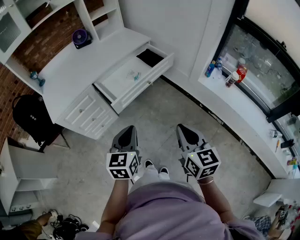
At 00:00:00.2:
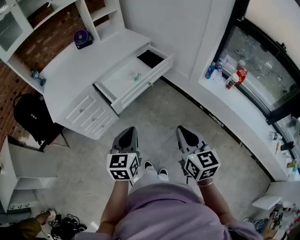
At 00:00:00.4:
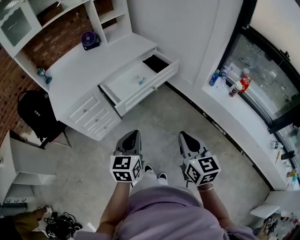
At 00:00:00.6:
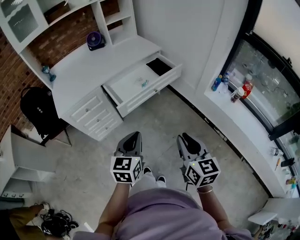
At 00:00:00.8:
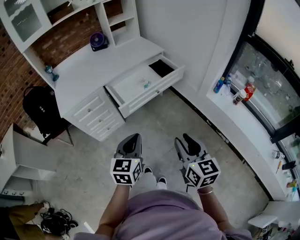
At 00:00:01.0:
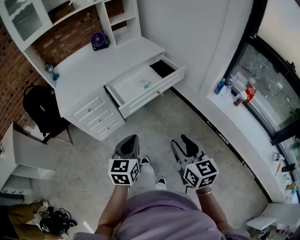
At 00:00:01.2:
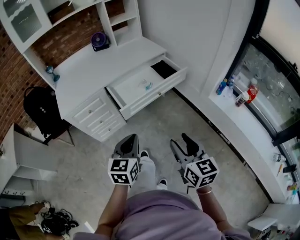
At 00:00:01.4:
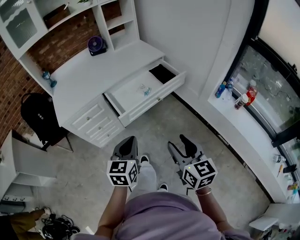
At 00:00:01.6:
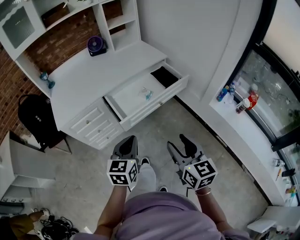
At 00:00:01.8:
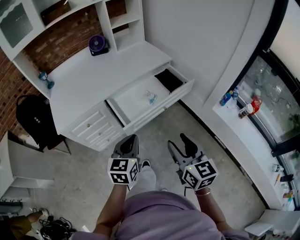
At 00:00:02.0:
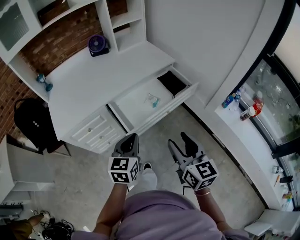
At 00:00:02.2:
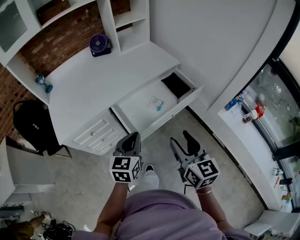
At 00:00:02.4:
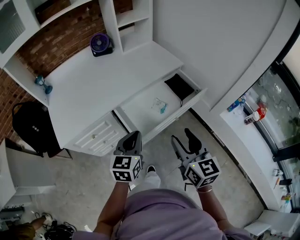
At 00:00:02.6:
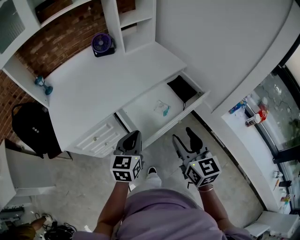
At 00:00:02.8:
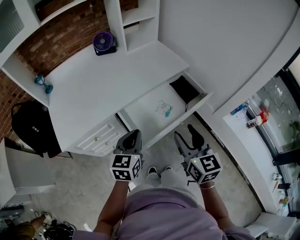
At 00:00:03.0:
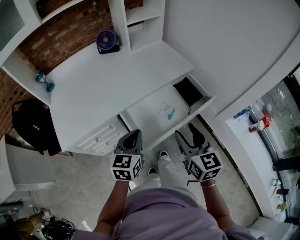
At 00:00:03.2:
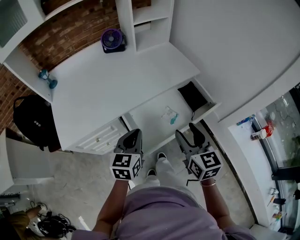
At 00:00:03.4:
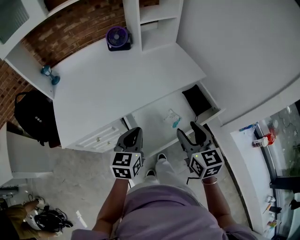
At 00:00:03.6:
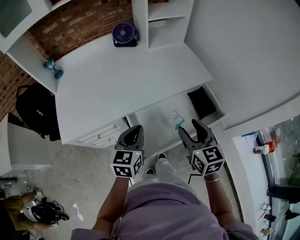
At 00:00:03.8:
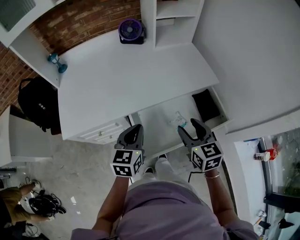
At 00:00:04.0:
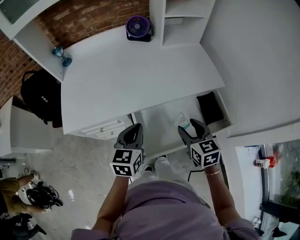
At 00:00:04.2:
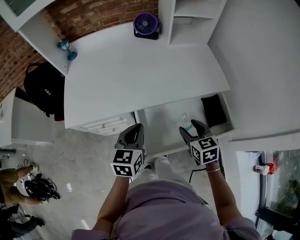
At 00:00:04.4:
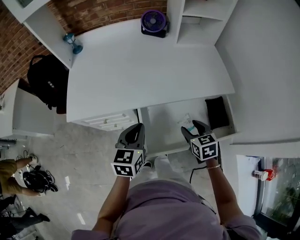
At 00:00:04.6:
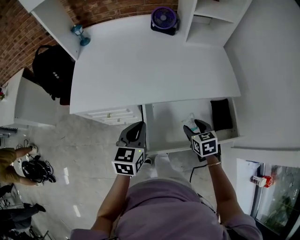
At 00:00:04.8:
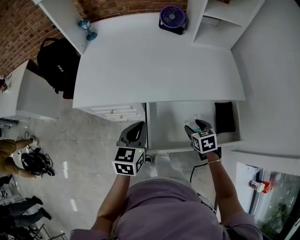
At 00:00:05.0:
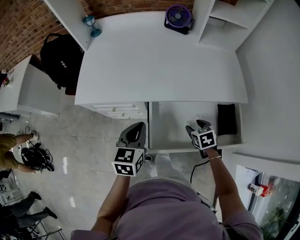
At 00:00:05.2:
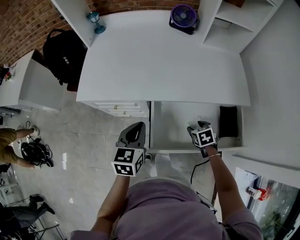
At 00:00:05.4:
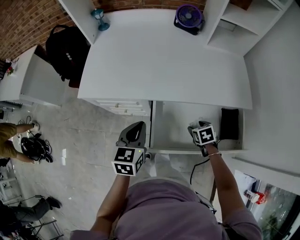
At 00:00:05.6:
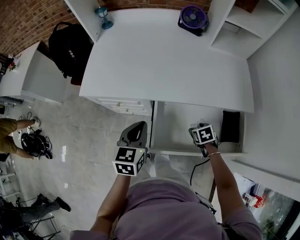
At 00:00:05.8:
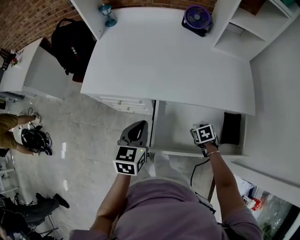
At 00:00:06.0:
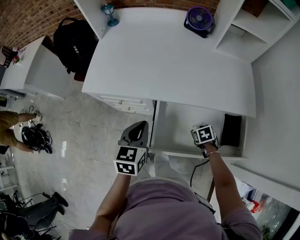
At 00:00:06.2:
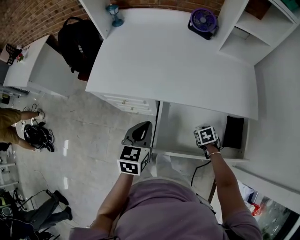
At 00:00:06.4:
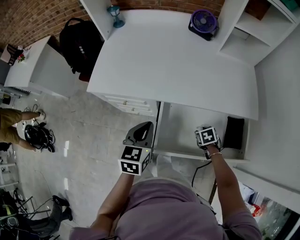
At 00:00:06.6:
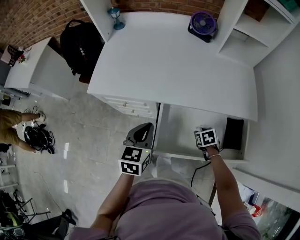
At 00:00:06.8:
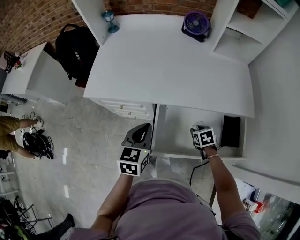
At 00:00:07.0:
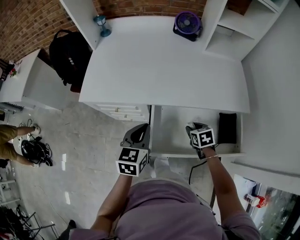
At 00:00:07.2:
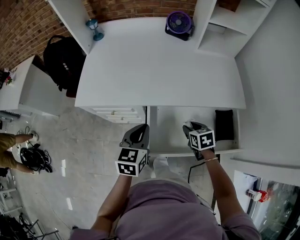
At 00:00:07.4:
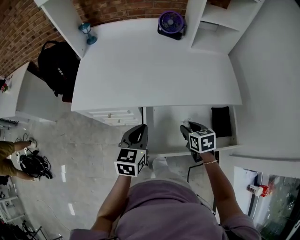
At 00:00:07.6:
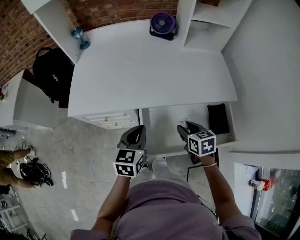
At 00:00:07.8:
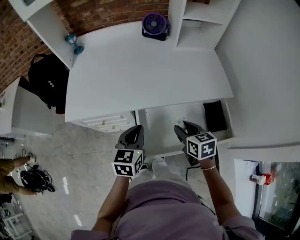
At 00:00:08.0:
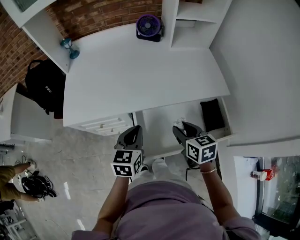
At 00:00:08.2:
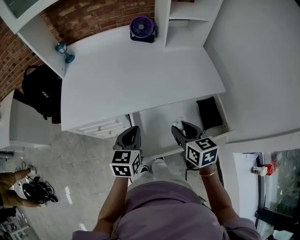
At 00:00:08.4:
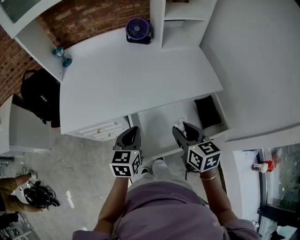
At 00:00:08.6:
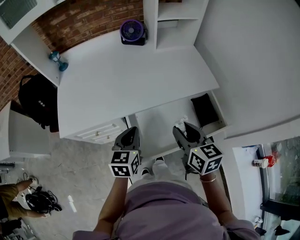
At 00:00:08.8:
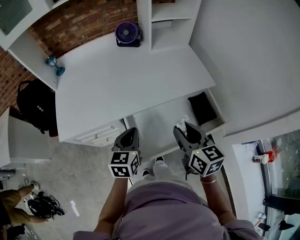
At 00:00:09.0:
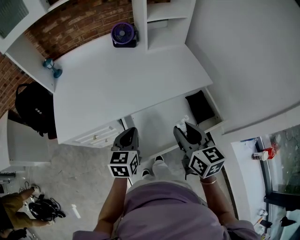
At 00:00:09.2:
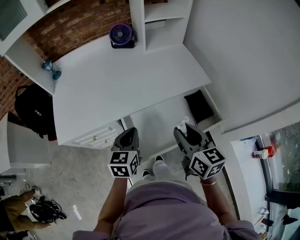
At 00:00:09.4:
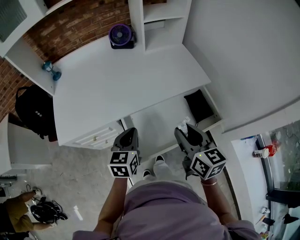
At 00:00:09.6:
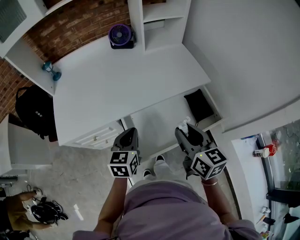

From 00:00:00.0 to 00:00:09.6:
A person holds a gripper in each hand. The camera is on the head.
From 00:00:00.0 to 00:00:01.6: Both grippers travel together forward, some 10 cm. The right gripper opens.
From 00:00:01.6 to 00:00:03.2: The left gripper heads forward and to the left, covering about 30 cm. Meanwhile the right gripper heads forward, covering some 30 cm.
From 00:00:03.2 to 00:00:04.8: The right gripper is displaced downward by approximately 20 cm, and tilts its fingers roughly 40 degrees downward. The left gripper moves approximately 5 cm, and turns by roughly 30 degrees.
From 00:00:04.8 to 00:00:06.4: The right gripper heads downward, covering some 10 cm, and turns by roughly 20 degrees.
From 00:00:06.4 to 00:00:08.0: The left gripper changes place by approximately 5 cm. Meanwhile the right gripper travels upward by approximately 20 cm, and points its fingers some 40 degrees further upward.
From 00:00:08.0 to 00:00:09.6: The right gripper shifts about 10 cm upward and backward, and turns by roughly 20 degrees.

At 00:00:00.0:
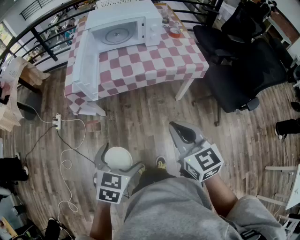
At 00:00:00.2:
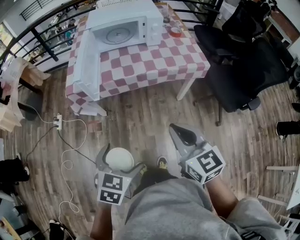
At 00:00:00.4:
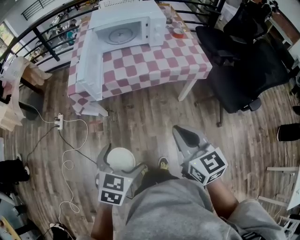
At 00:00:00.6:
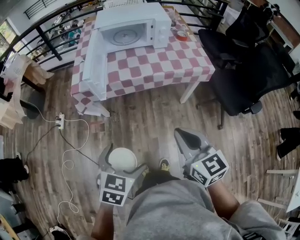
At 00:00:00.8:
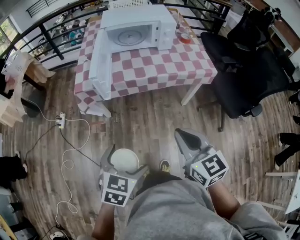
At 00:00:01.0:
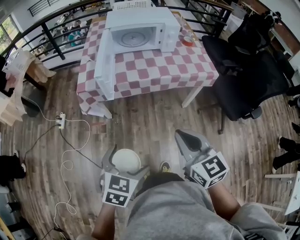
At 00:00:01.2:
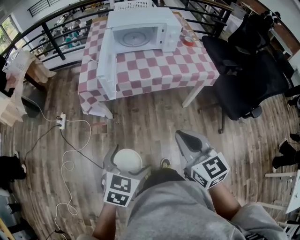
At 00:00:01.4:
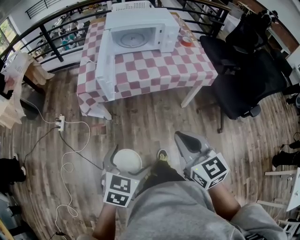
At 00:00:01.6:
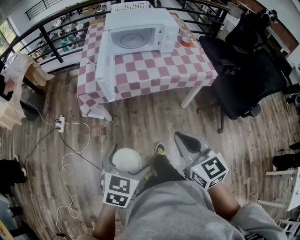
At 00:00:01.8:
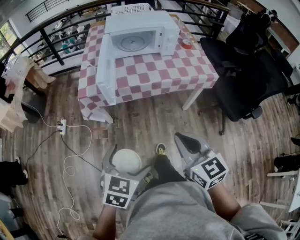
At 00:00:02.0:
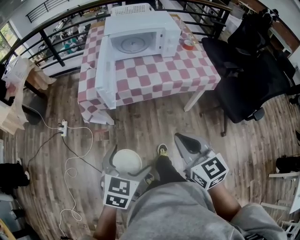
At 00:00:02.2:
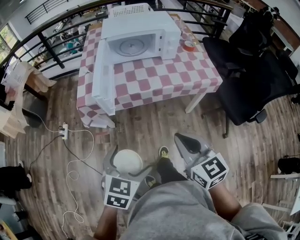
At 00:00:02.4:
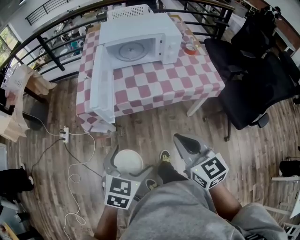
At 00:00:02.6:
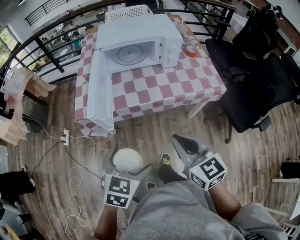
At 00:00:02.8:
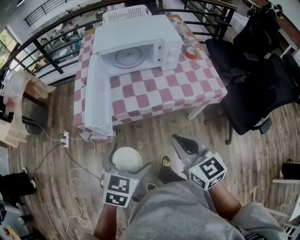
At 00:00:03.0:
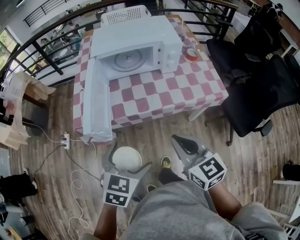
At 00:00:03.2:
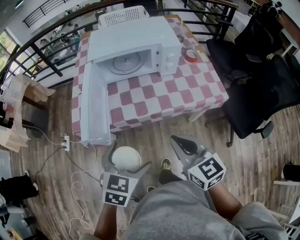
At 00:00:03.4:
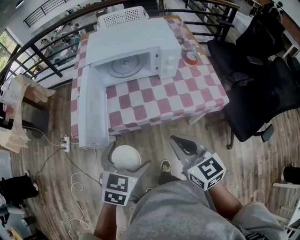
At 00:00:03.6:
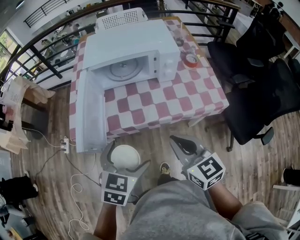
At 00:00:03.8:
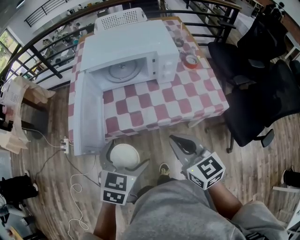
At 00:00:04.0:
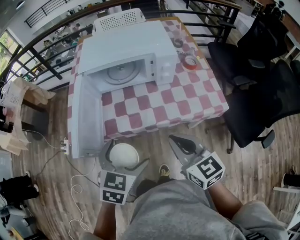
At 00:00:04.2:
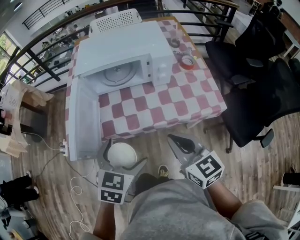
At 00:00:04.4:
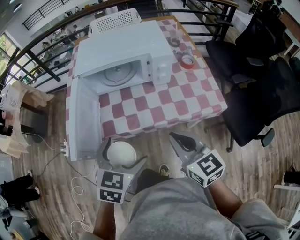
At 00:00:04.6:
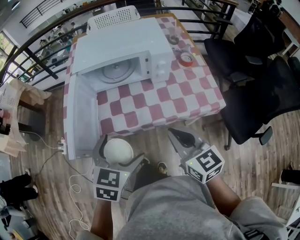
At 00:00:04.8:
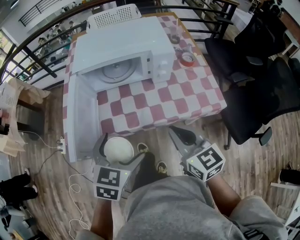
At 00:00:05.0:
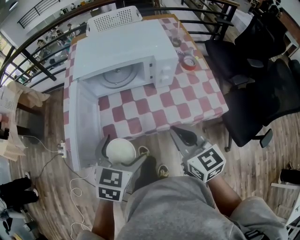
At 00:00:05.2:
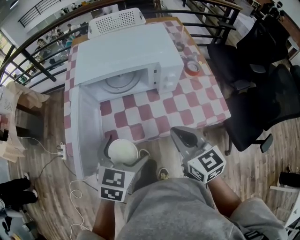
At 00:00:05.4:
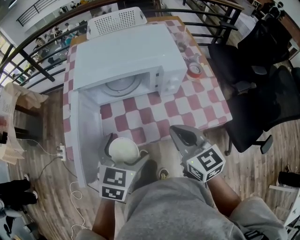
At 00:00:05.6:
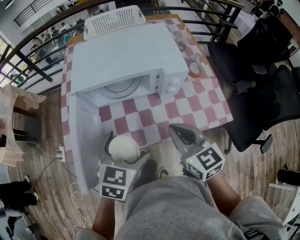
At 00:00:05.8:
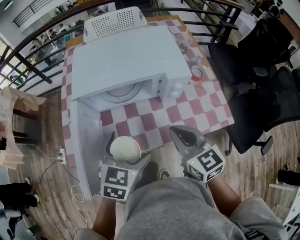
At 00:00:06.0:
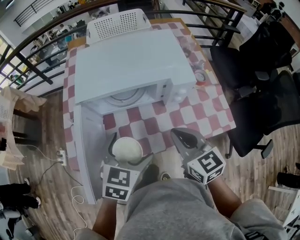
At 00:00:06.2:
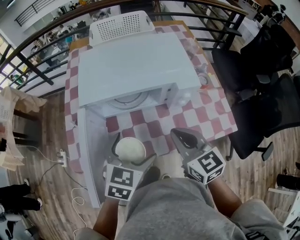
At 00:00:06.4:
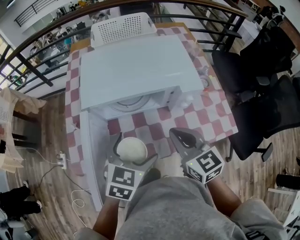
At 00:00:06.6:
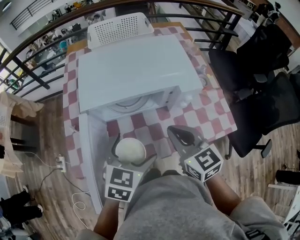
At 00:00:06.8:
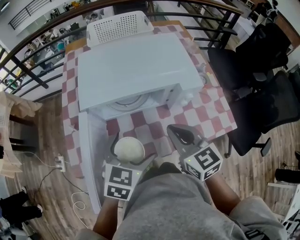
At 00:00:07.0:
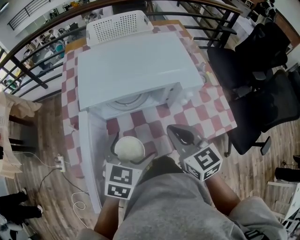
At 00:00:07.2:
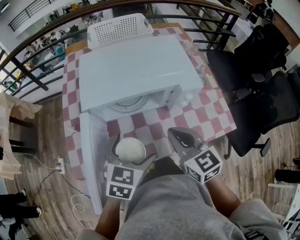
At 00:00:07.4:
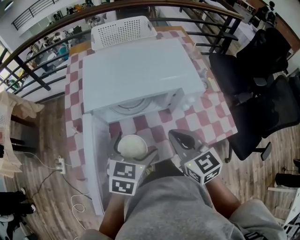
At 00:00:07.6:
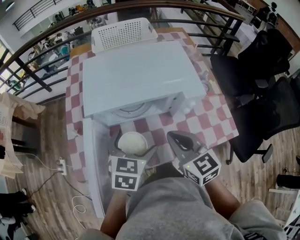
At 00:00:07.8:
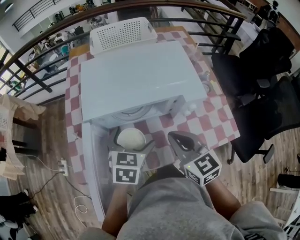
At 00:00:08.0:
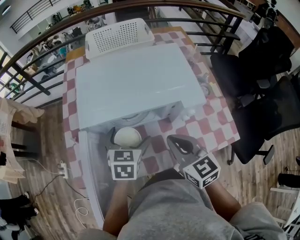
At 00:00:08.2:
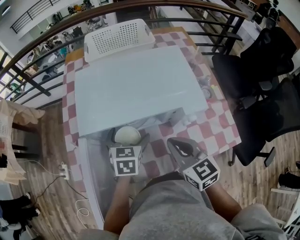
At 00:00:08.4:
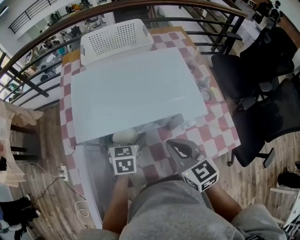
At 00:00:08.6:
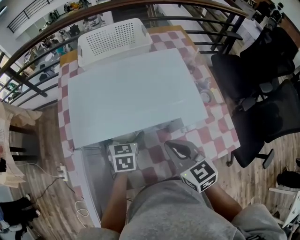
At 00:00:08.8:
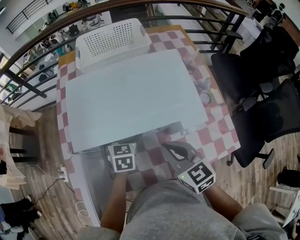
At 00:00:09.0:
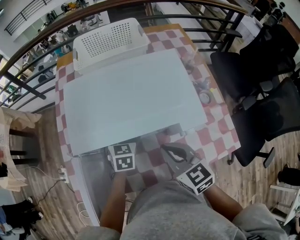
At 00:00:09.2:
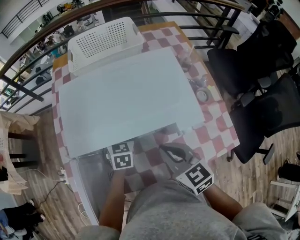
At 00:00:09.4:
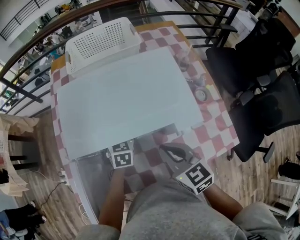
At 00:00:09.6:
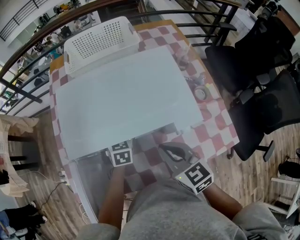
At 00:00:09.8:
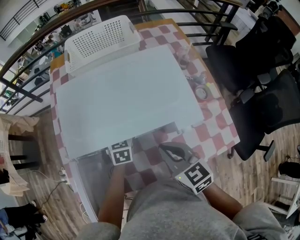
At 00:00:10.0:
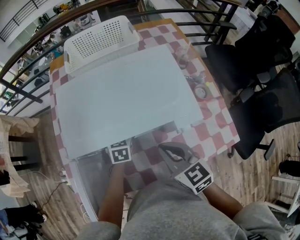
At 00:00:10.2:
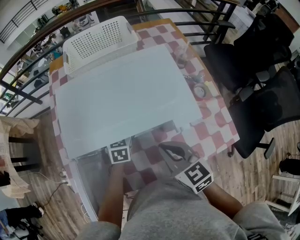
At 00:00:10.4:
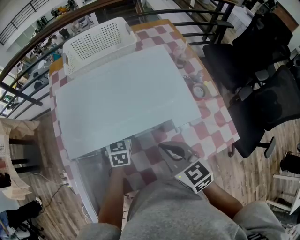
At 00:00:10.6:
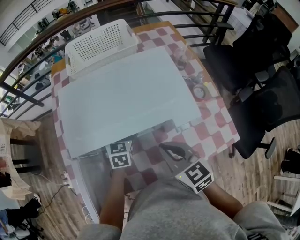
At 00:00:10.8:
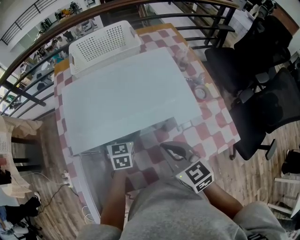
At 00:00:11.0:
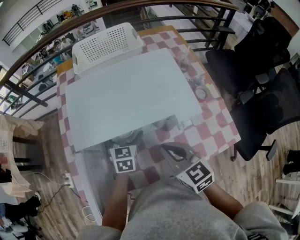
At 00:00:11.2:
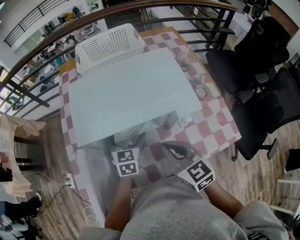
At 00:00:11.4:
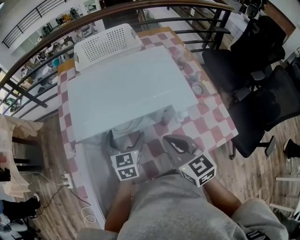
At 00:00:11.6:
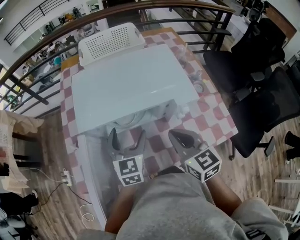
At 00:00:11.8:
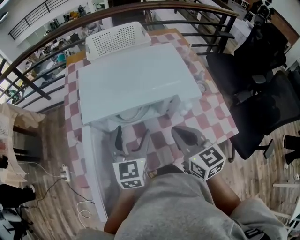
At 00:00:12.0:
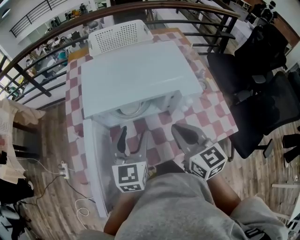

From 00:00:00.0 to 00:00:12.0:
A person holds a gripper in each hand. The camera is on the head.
From 00:00:00.0 to 00:00:01.6: The grippers both shift to the left by roughly 5 cm.
From 00:00:01.6 to 00:00:03.0: The two grippers go approximately 20 cm forward.
From 00:00:03.0 to 00:00:04.4: The two grippers go roughly 15 cm forward and to the right.
From 00:00:04.4 to 00:00:06.0: Both grippers travel together forward, roughly 15 cm.
From 00:00:06.0 to 00:00:07.6: The left gripper heads forward, covering some 5 cm, while the right gripper shifts about 5 cm to the left.
From 00:00:07.6 to 00:00:09.0: The right gripper moves forward, approximately 5 cm; the left gripper travels forward and downward by about 20 cm.
From 00:00:09.0 to 00:00:10.4: The grippers stay close to where they were, moving slightly.
From 00:00:10.4 to 00:00:12.0: The right gripper travels upward and backward by roughly 10 cm. The left gripper goes about 25 cm backward and upward, swivels approximately 20 degrees, and closes up.

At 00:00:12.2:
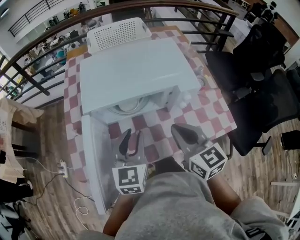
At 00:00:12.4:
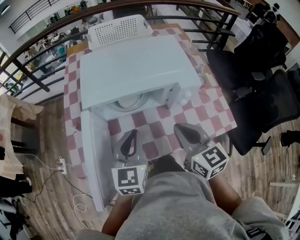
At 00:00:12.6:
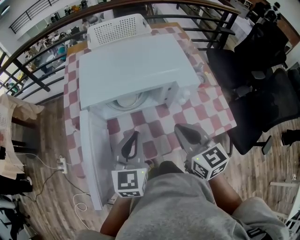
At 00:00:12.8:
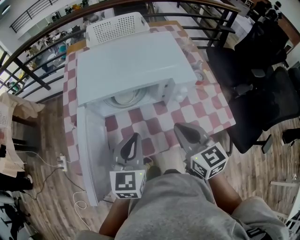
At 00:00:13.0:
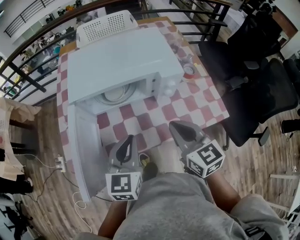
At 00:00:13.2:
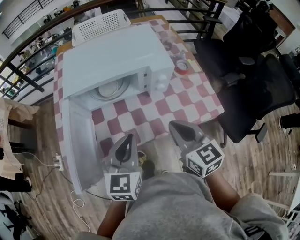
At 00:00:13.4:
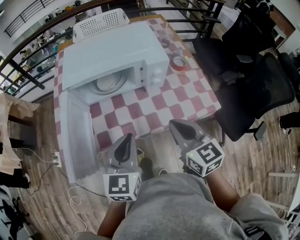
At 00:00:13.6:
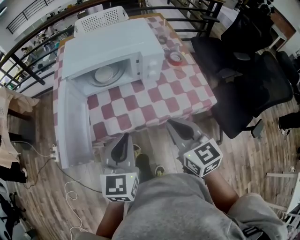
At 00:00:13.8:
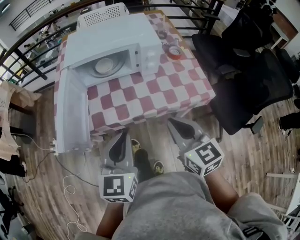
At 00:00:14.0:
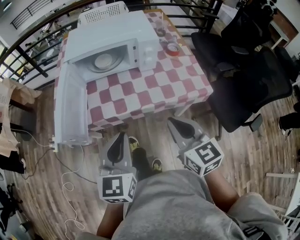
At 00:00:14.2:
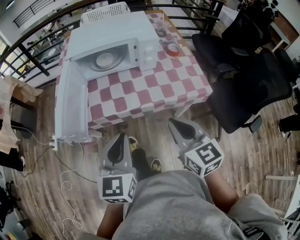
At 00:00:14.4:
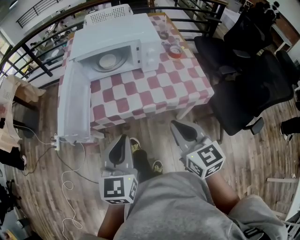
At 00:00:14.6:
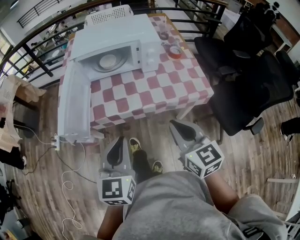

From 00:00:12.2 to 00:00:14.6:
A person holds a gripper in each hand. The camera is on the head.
From 00:00:12.2 to 00:00:13.4: Both grippers travel together backward and to the right, about 15 cm.
From 00:00:13.4 to 00:00:14.6: Both grippers move backward, about 15 cm.
